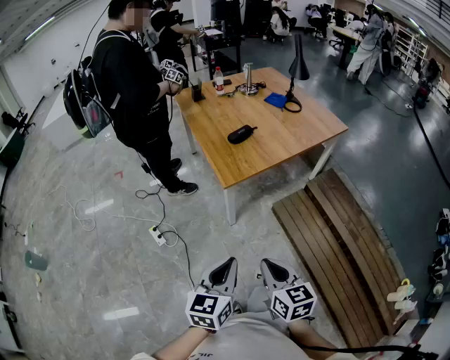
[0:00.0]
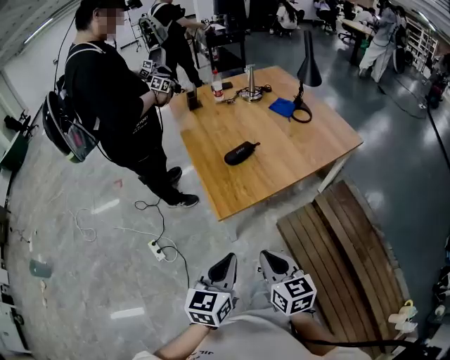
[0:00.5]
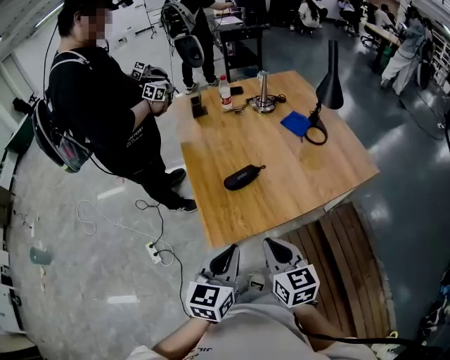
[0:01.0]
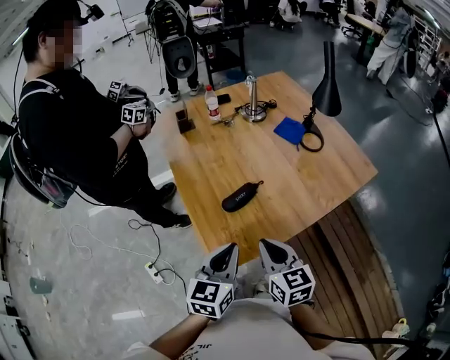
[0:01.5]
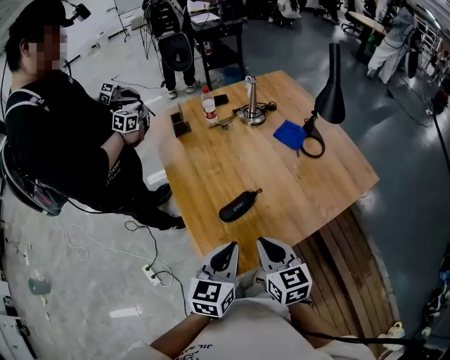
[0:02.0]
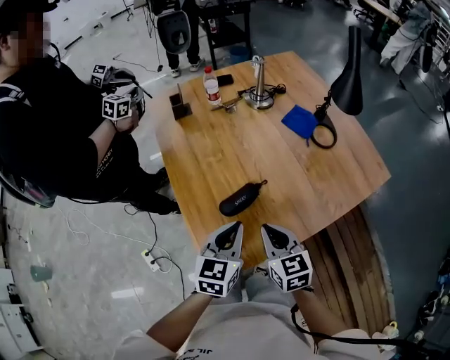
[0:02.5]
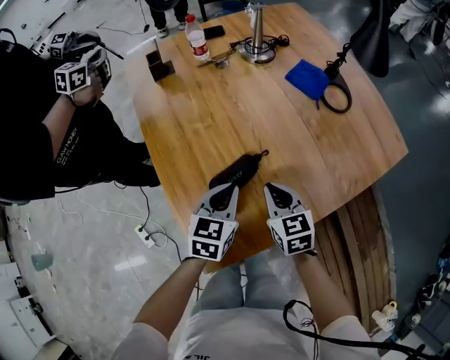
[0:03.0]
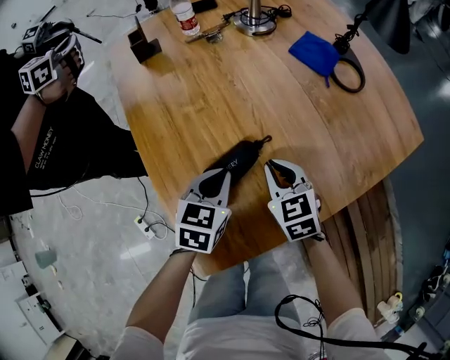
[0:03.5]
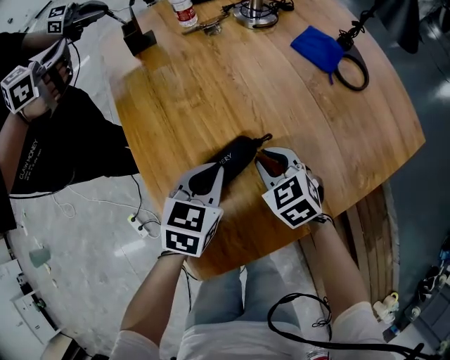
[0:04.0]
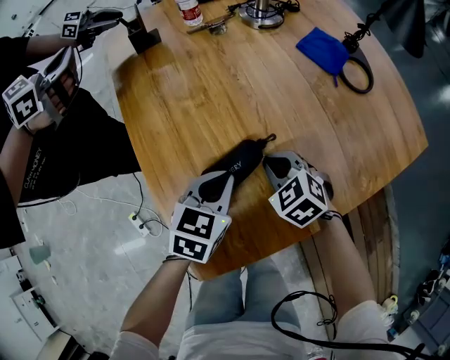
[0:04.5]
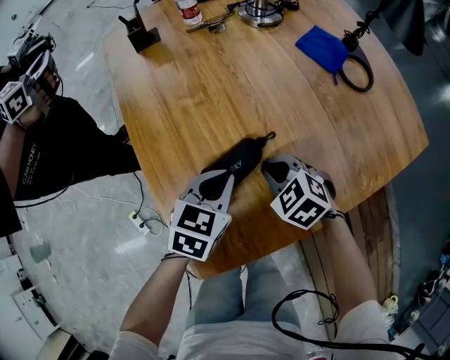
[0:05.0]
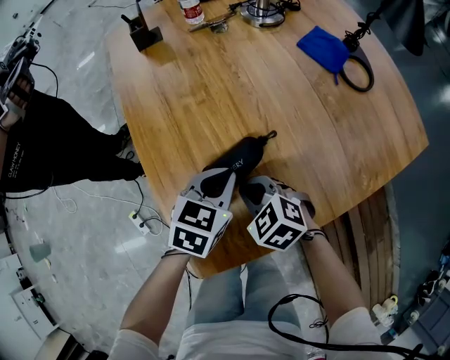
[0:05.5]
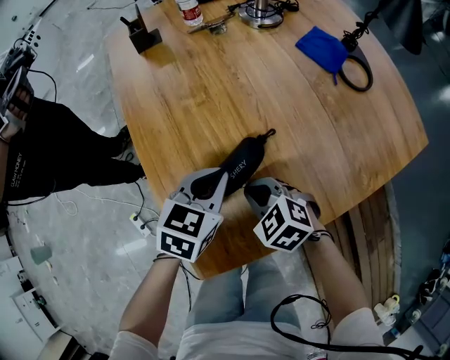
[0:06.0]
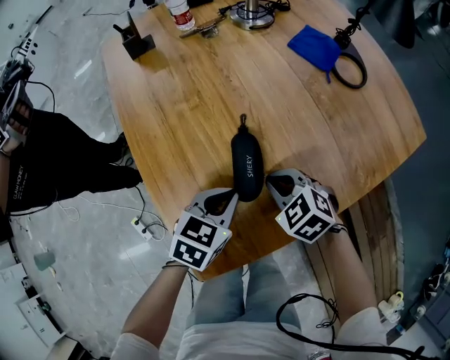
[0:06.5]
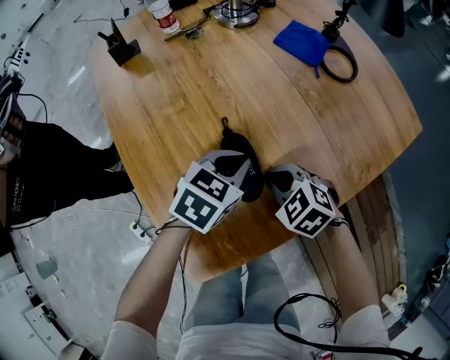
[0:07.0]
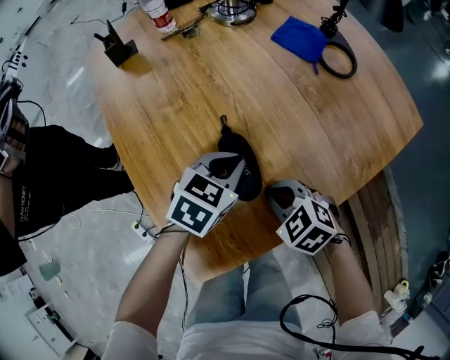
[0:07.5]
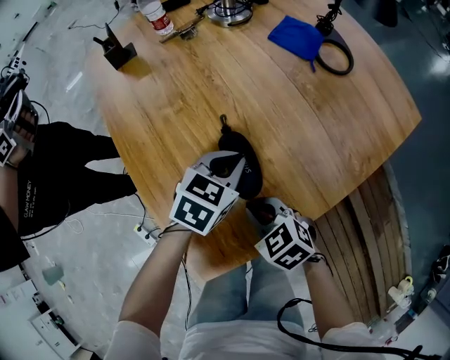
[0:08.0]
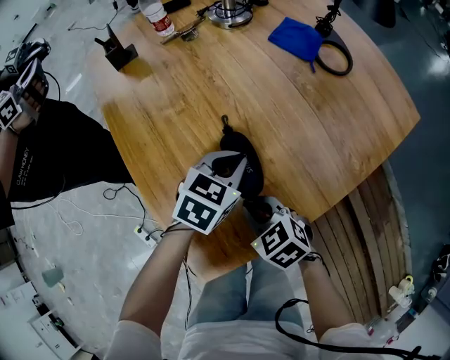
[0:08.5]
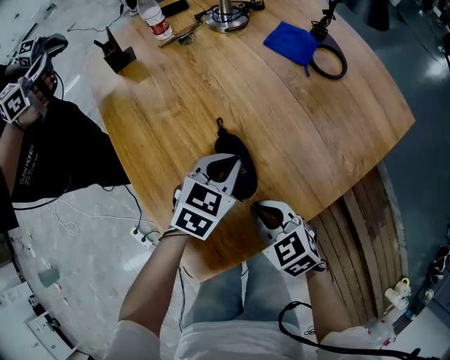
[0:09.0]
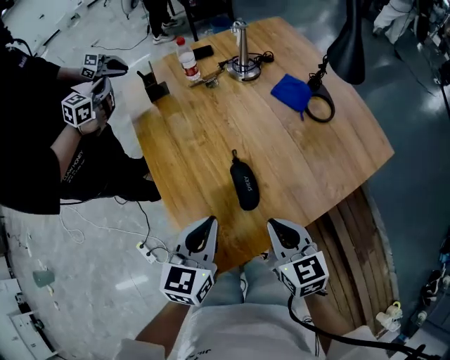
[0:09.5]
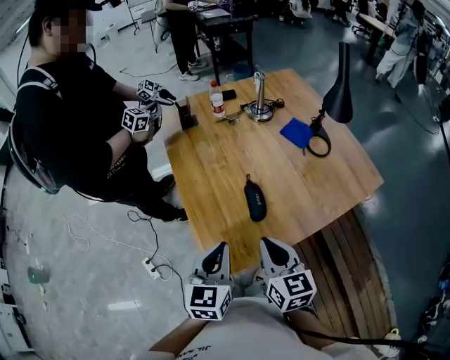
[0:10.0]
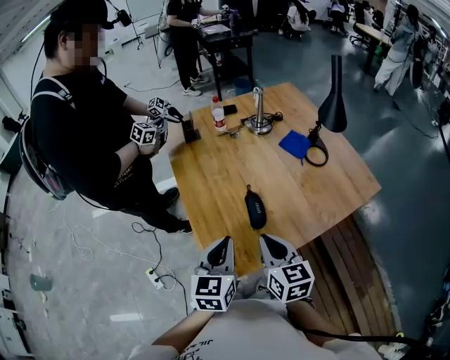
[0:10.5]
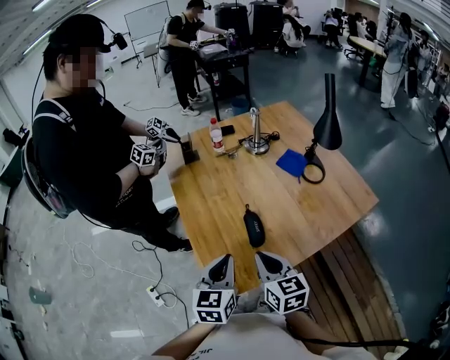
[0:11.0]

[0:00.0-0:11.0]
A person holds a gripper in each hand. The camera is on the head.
0:00.0 to 0:02.0: Both grippers are carried forward, some 60 cm.
0:02.0 to 0:03.5: Both grippers move downward and forward, about 30 cm. The right gripper turns by about 20 degrees. The left gripper rotates about 20 degrees.
0:03.5 to 0:05.5: The right gripper moves to the left and backward, roughly 10 cm, and swivels roughly 40 degrees.
0:05.5 to 0:07.5: The two grippers go some 10 cm to the right.
0:07.5 to 0:09.0: The right gripper ends up about 5 cm from where it was.
0:09.0 to 0:11.0: The right gripper moves upward, approximately 25 cm, and changes its angle by some 30 degrees. Meanwhile the left gripper heads upward, backward and to the left, covering approximately 30 cm, and rotates some 40 degrees.

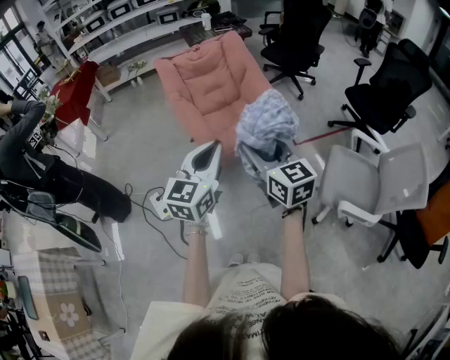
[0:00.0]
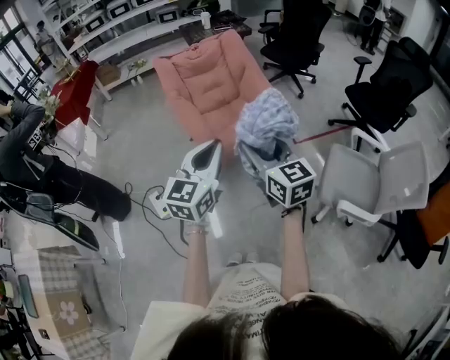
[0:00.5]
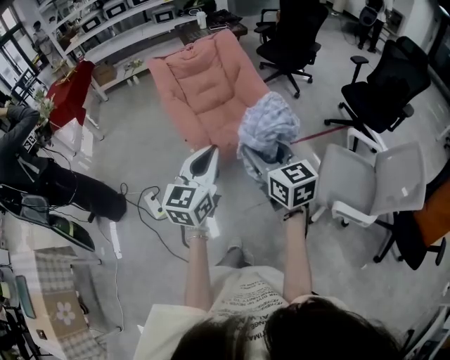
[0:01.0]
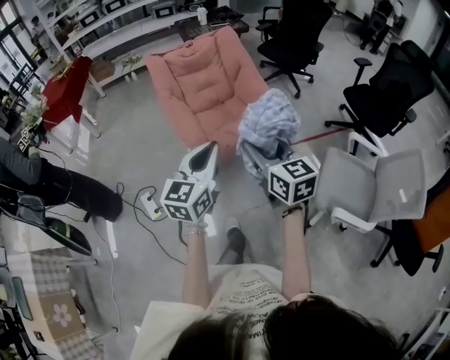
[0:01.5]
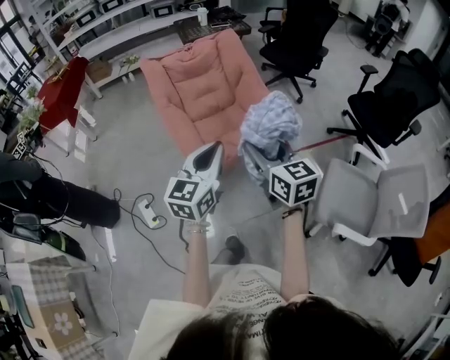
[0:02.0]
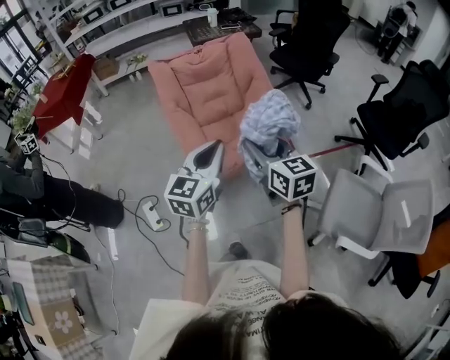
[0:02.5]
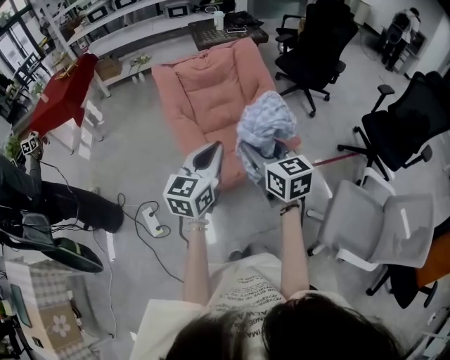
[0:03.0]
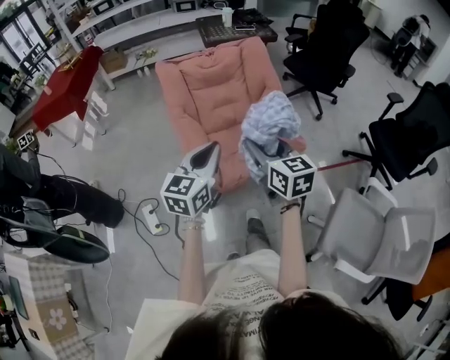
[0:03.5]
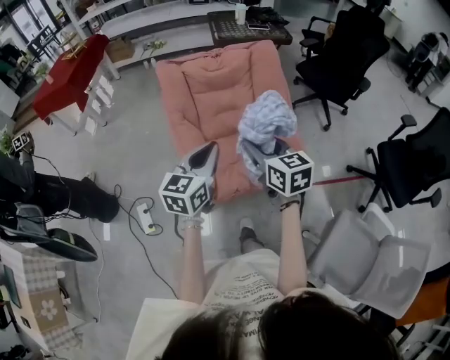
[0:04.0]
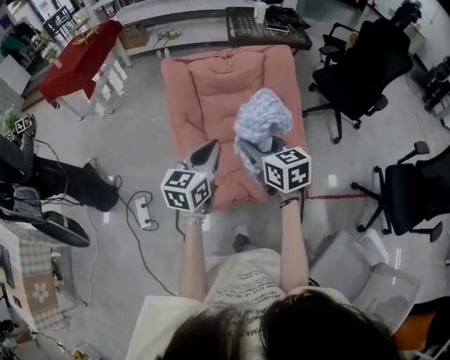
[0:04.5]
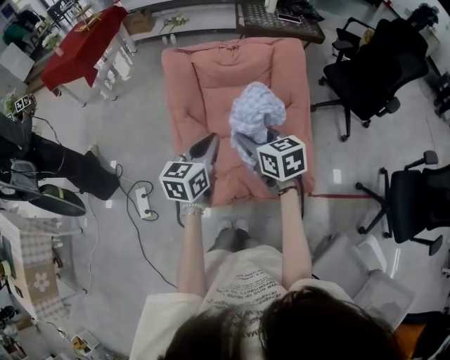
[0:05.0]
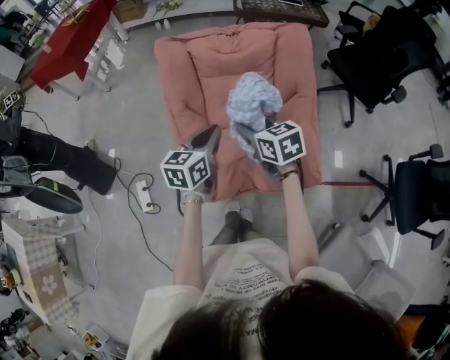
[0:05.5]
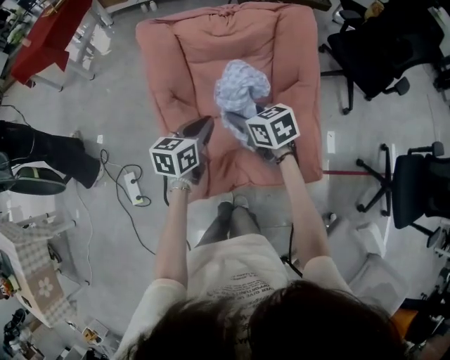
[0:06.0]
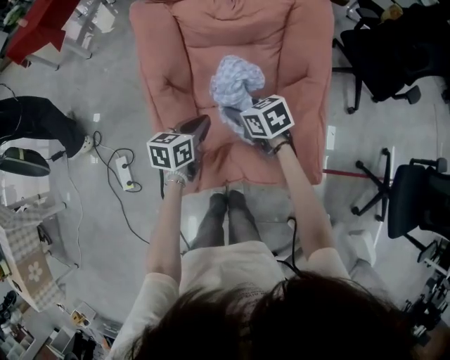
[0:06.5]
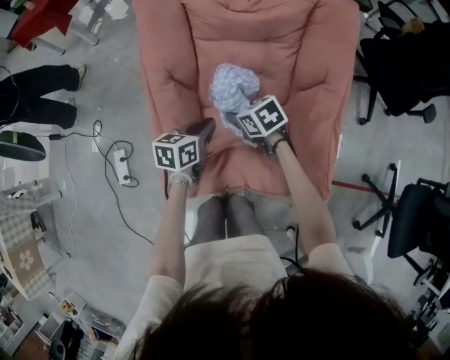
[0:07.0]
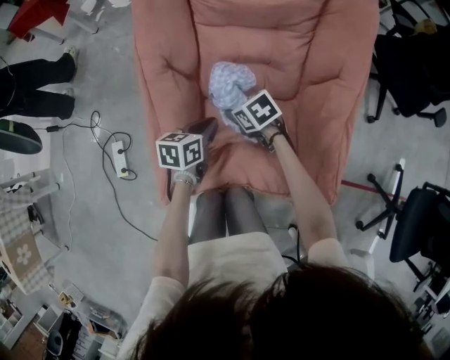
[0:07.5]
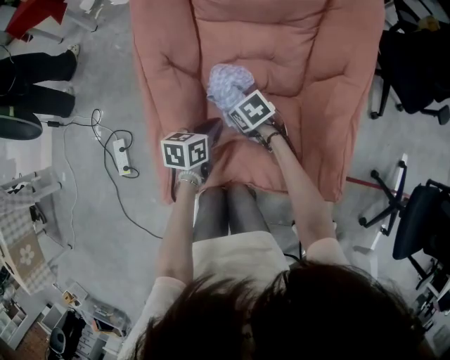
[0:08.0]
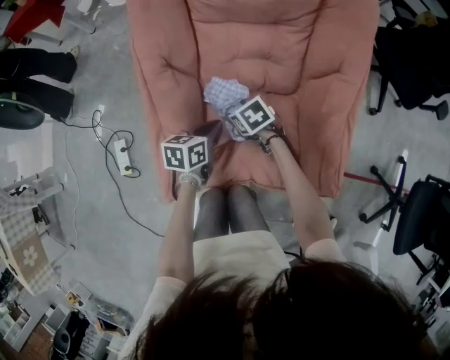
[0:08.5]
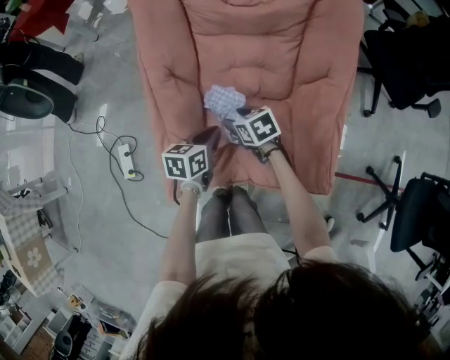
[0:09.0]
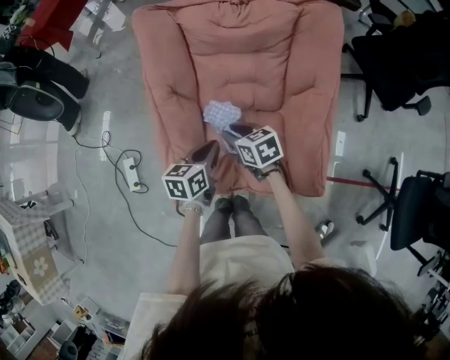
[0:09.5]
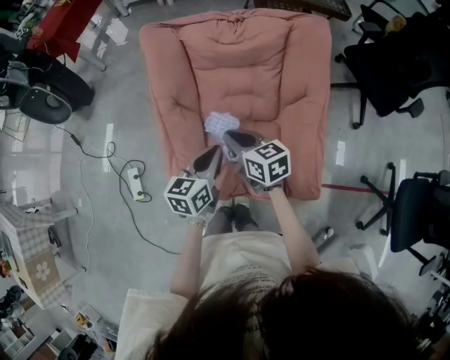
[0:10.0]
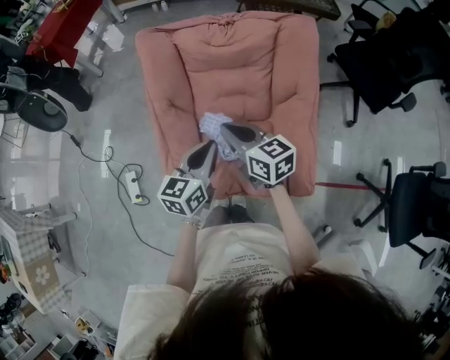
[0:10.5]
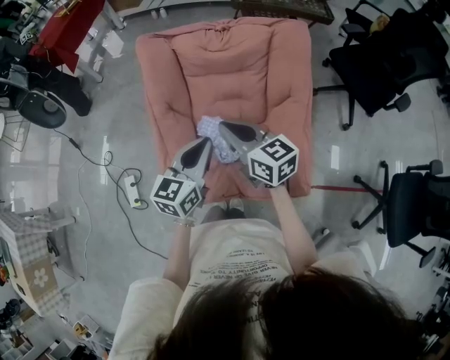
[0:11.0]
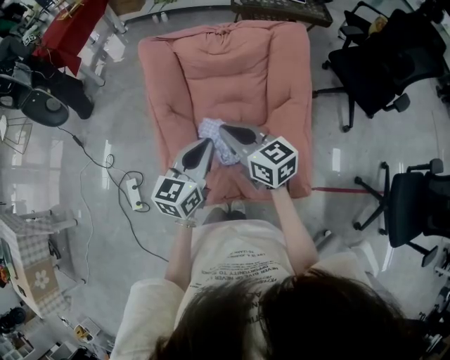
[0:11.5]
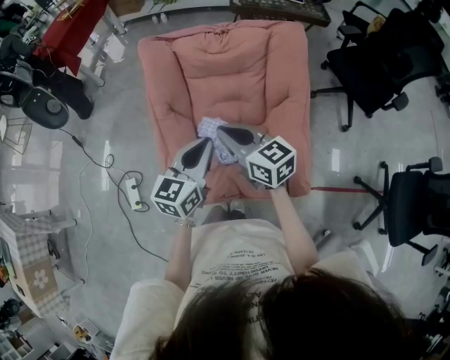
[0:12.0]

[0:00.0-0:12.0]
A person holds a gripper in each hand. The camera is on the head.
0:00.0 to 0:02.0: The grippers both shift forward by roughly 15 cm.
0:02.0 to 0:04.0: The grippers both shift forward by some 30 cm.
0:04.0 to 0:06.0: Both grippers move forward and downward, approximately 30 cm. The left gripper changes its angle by some 20 degrees, while the right gripper changes its angle by about 30 degrees.
0:06.0 to 0:08.0: Both grippers travel together downward, approximately 25 cm. The right gripper turns by some 30 degrees.
0:08.0 to 0:10.0: The grippers both shift upward by about 25 cm. The right gripper points its fingers about 40 degrees further upward, and closes.
0:10.0 to 0:12.0: Both grippers move upward, roughly 10 cm.

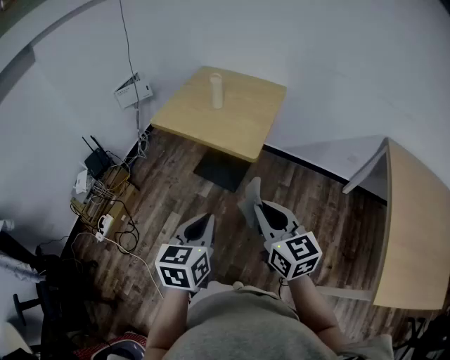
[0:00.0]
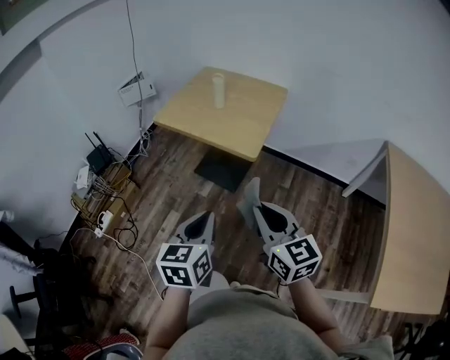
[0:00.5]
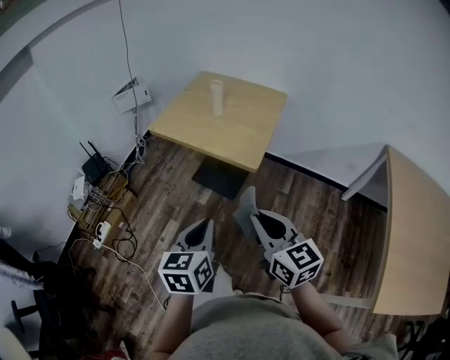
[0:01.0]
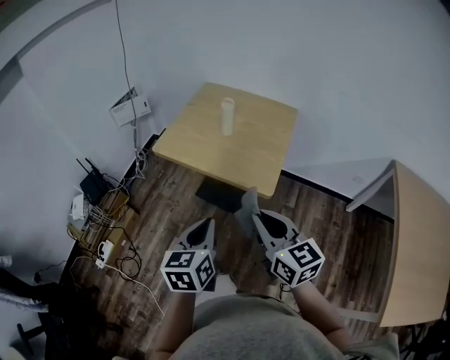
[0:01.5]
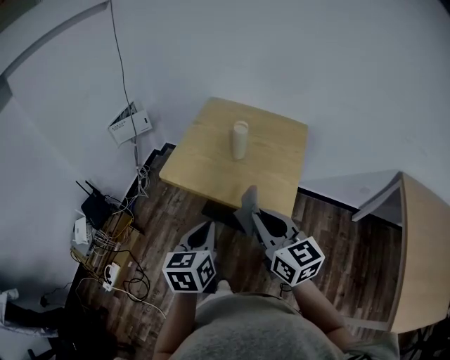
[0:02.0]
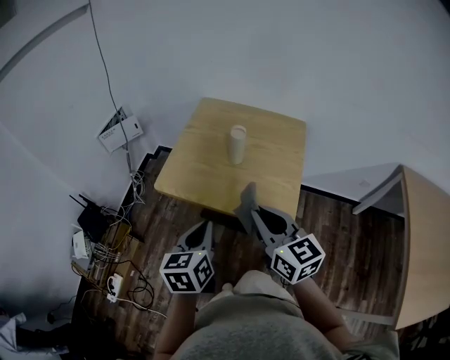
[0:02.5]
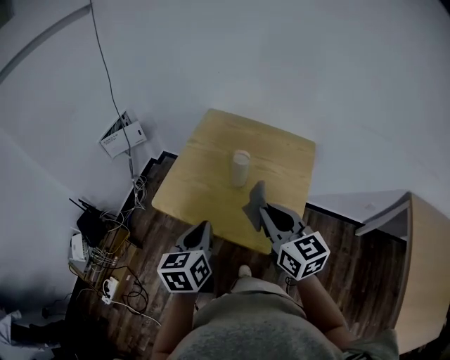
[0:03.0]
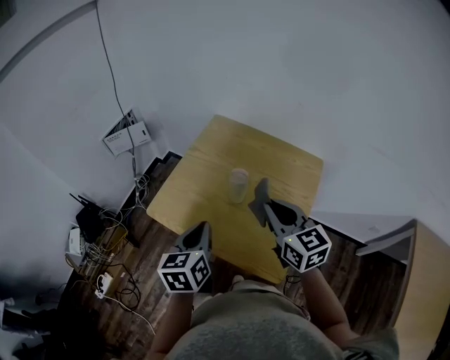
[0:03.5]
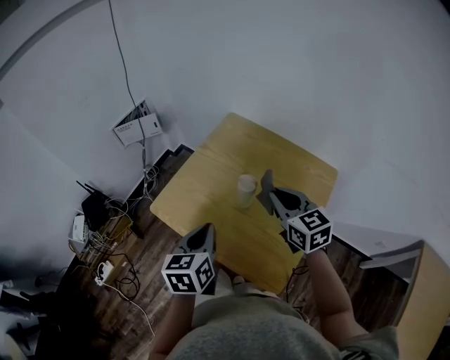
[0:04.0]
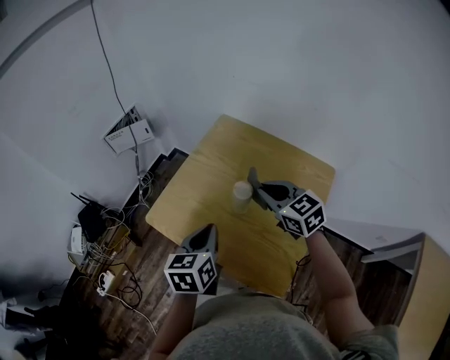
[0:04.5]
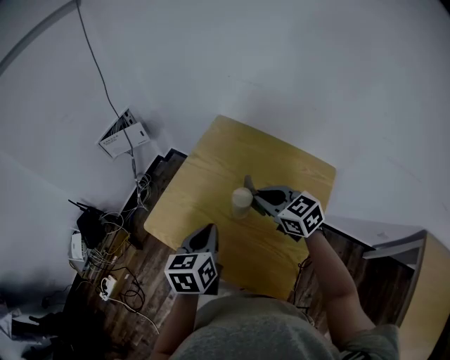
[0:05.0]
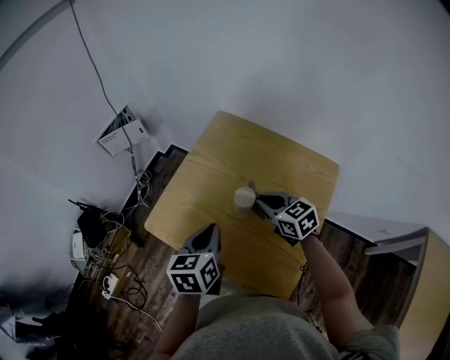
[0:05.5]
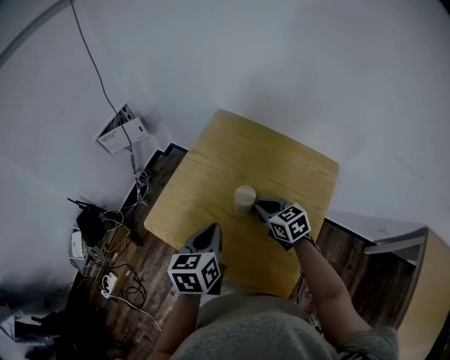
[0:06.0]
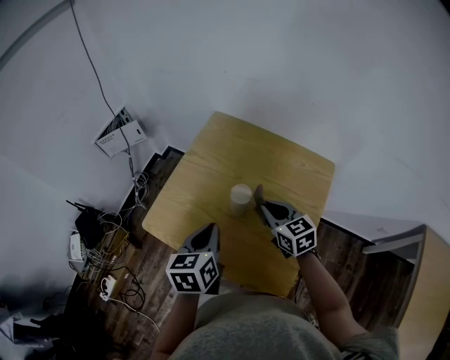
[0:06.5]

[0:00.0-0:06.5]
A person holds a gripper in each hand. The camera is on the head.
0:00.0 to 0:02.0: The right gripper shifts some 30 cm forward and to the left. Meanwhile the left gripper travels forward by about 30 cm.
0:02.0 to 0:04.5: Both grippers travel together forward, approximately 30 cm. The right gripper changes its angle by approximately 30 degrees.
0:04.5 to 0:06.5: The right gripper shifts roughly 10 cm downward.
